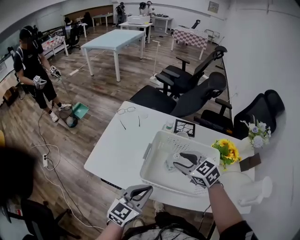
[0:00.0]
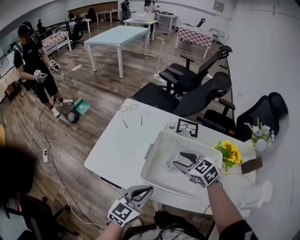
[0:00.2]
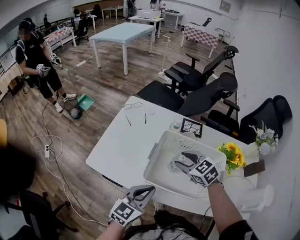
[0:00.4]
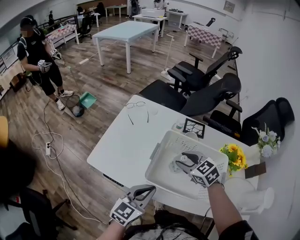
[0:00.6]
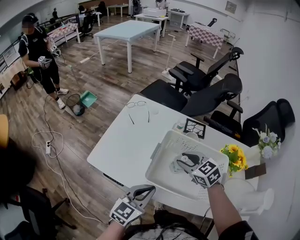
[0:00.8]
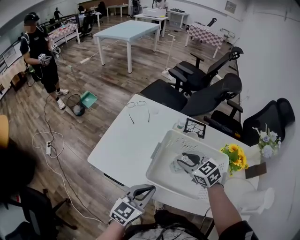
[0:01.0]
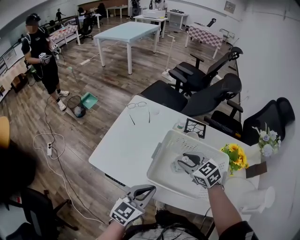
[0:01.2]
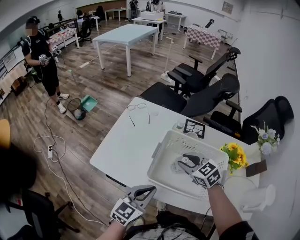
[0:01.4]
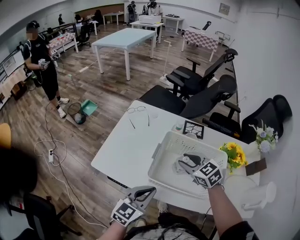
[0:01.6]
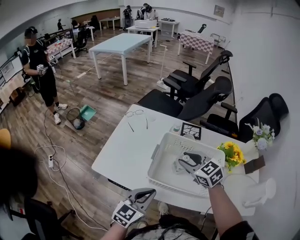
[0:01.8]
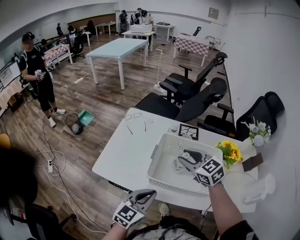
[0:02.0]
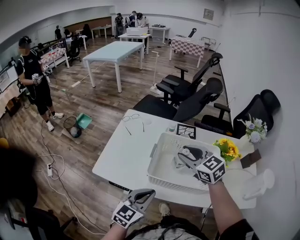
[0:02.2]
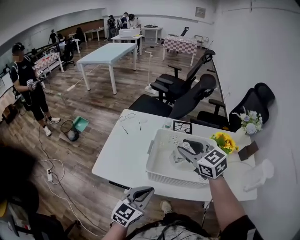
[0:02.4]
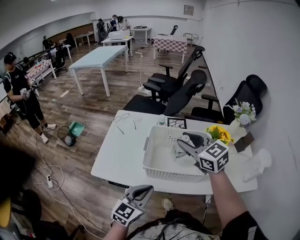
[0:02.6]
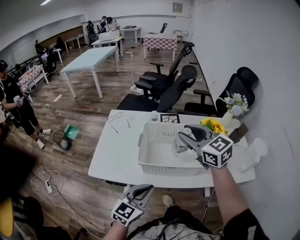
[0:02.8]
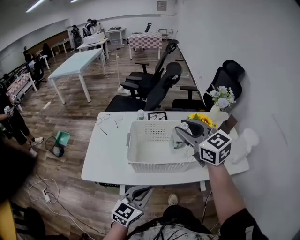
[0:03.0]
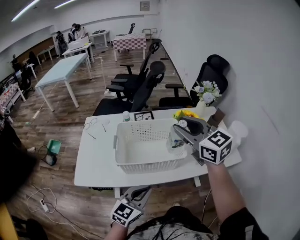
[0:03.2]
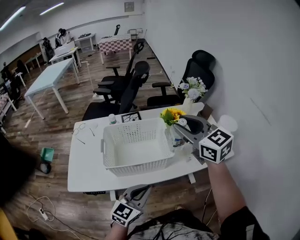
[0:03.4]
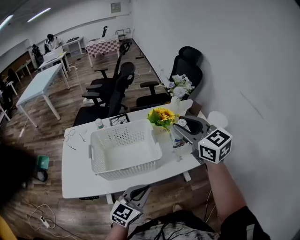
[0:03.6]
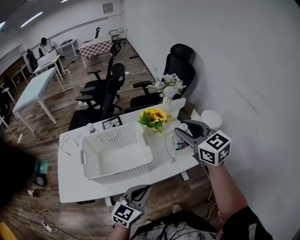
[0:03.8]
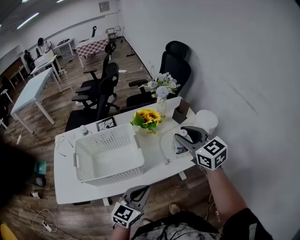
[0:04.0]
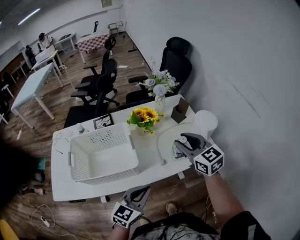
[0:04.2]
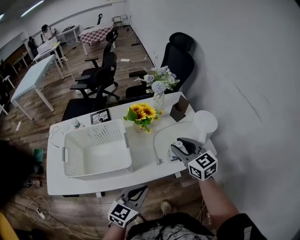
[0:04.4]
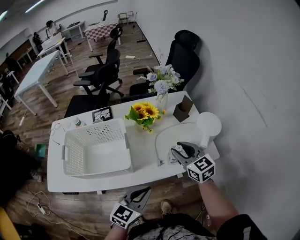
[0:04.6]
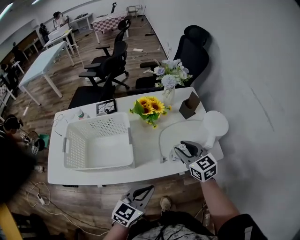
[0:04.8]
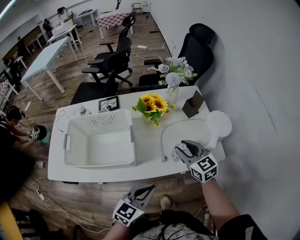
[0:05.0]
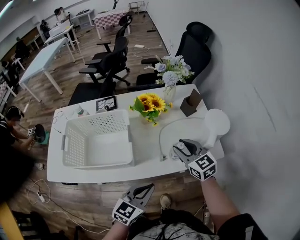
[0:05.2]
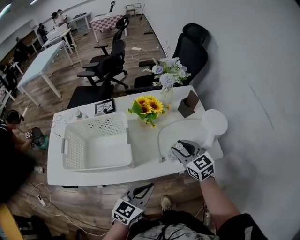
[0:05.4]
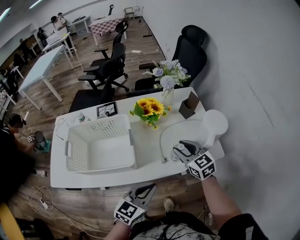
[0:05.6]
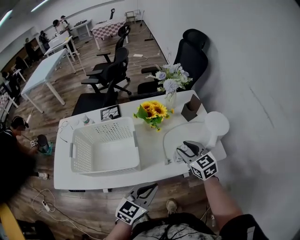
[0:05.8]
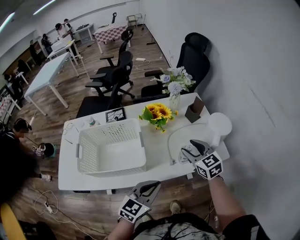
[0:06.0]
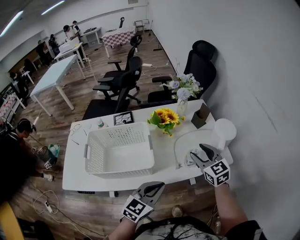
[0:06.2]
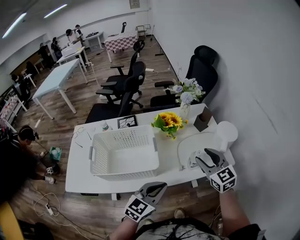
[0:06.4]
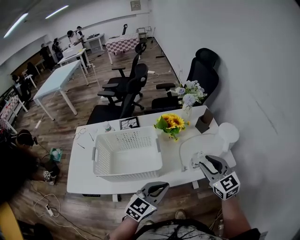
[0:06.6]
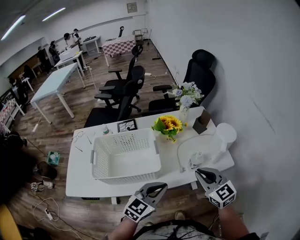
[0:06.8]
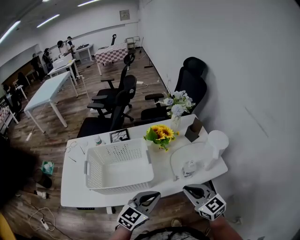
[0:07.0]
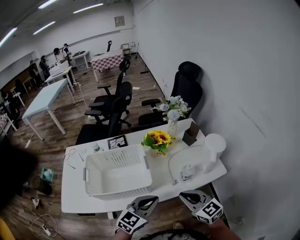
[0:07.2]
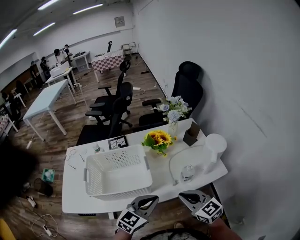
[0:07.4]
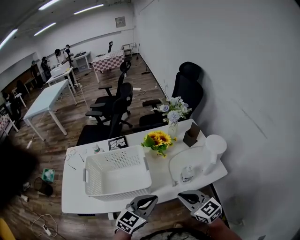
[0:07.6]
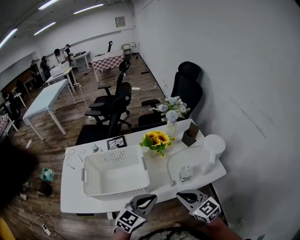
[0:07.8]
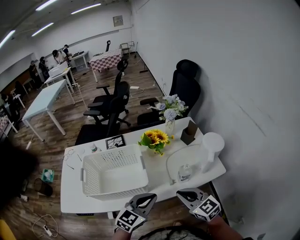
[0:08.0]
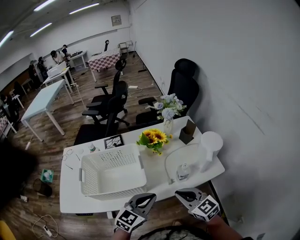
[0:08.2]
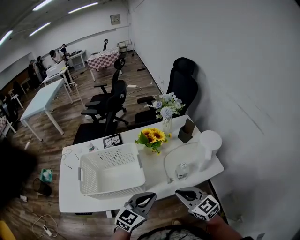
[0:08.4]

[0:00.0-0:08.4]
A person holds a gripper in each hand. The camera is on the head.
0:00.0 to 0:01.4: There are only small adjustments of the grippers.
0:01.4 to 0:02.8: The right gripper moves upward, approximately 20 cm, and rotates about 30 degrees. The left gripper heads backward, covering approximately 10 cm.
0:02.8 to 0:04.2: The grippers both shift to the right by about 30 cm. The left gripper swivels approximately 20 degrees. Meanwhile the right gripper swivels about 30 degrees.
0:04.2 to 0:05.6: The left gripper shifts by about 5 cm; the right gripper shifts some 10 cm downward.
0:05.6 to 0:07.0: The left gripper moves to the left and upward, some 10 cm; the right gripper goes some 15 cm backward, and closes.
0:07.0 to 0:08.4: The grippers move only a little.

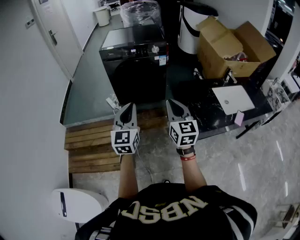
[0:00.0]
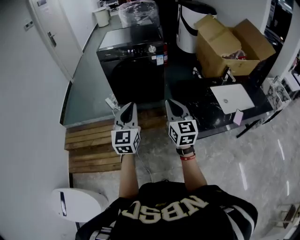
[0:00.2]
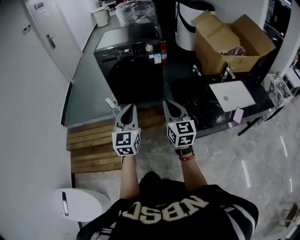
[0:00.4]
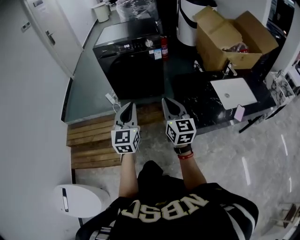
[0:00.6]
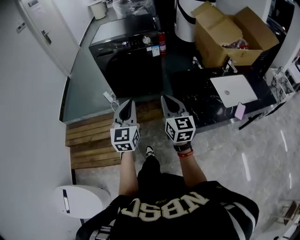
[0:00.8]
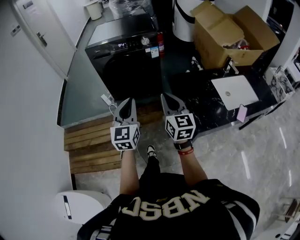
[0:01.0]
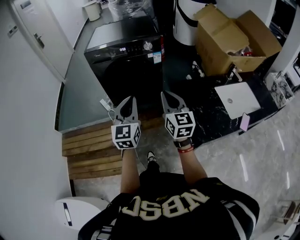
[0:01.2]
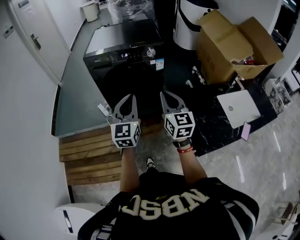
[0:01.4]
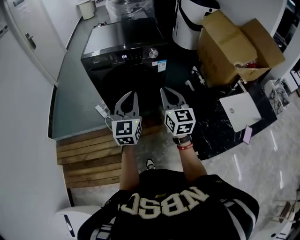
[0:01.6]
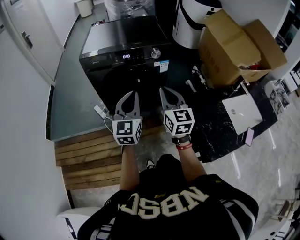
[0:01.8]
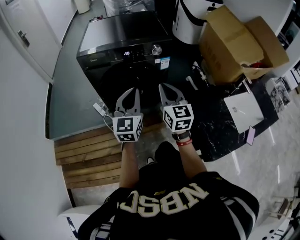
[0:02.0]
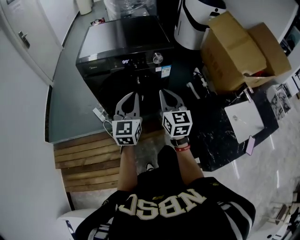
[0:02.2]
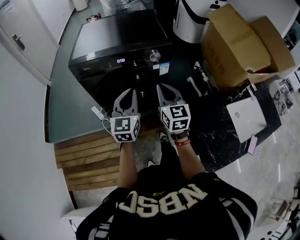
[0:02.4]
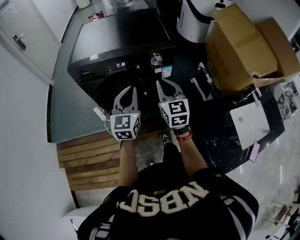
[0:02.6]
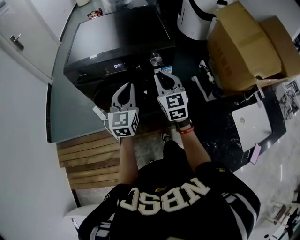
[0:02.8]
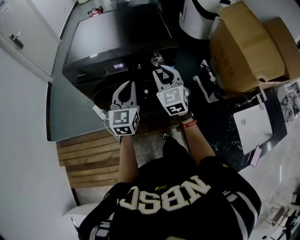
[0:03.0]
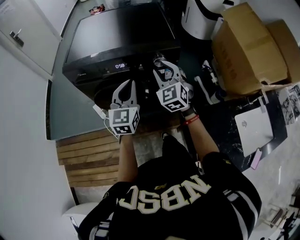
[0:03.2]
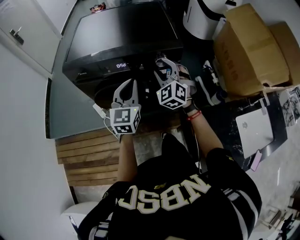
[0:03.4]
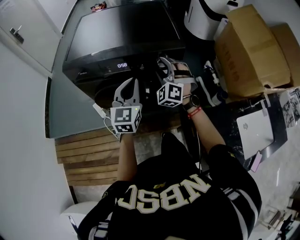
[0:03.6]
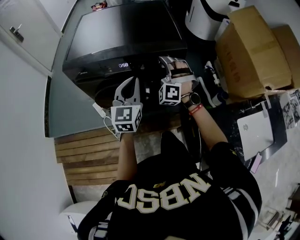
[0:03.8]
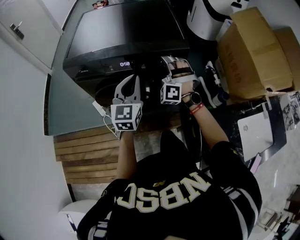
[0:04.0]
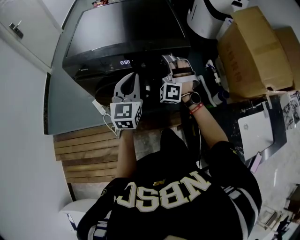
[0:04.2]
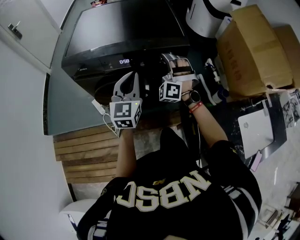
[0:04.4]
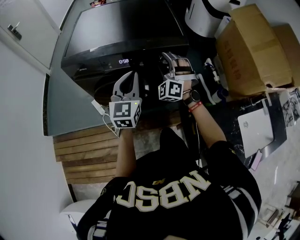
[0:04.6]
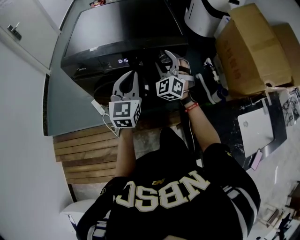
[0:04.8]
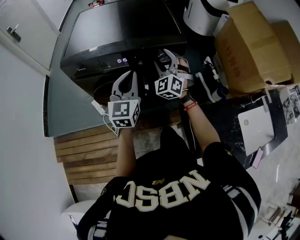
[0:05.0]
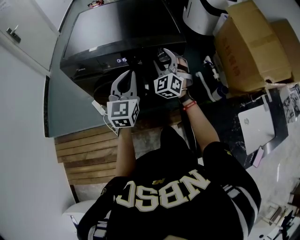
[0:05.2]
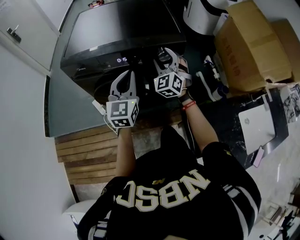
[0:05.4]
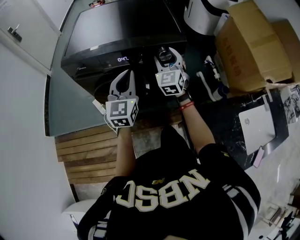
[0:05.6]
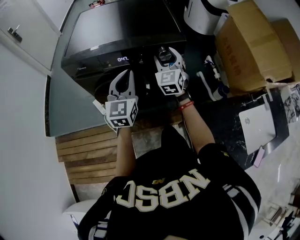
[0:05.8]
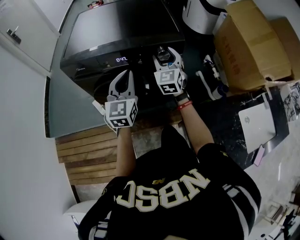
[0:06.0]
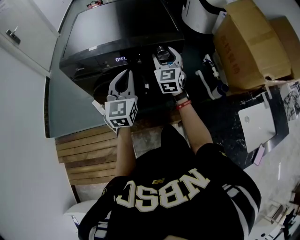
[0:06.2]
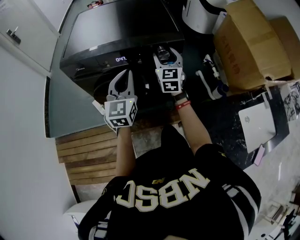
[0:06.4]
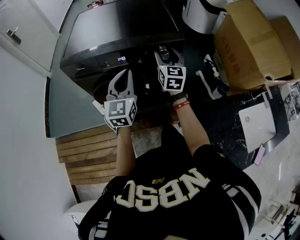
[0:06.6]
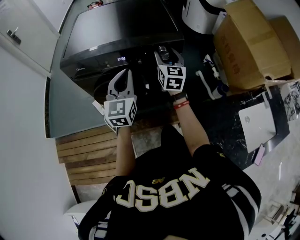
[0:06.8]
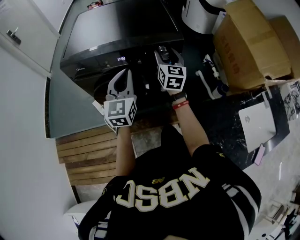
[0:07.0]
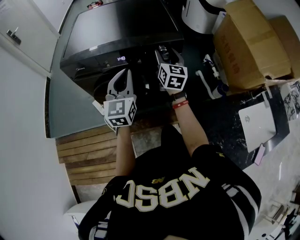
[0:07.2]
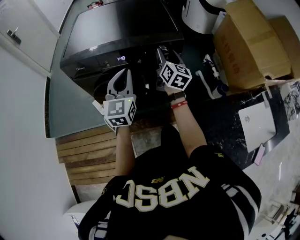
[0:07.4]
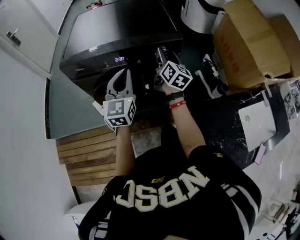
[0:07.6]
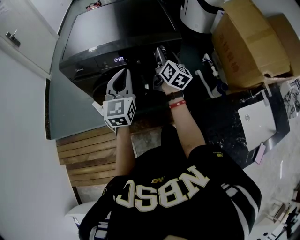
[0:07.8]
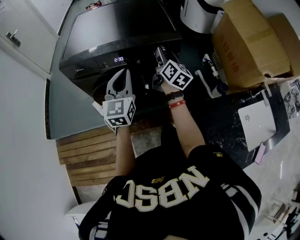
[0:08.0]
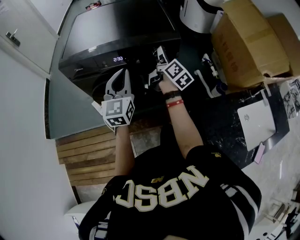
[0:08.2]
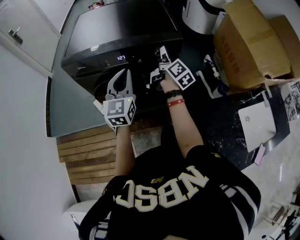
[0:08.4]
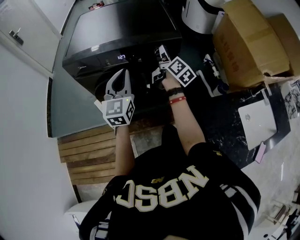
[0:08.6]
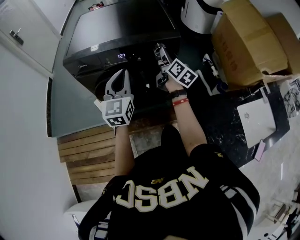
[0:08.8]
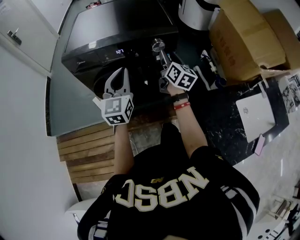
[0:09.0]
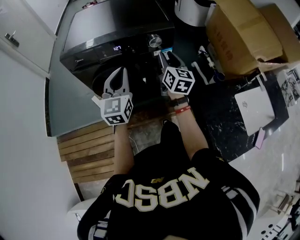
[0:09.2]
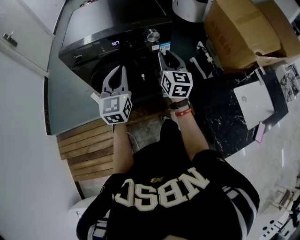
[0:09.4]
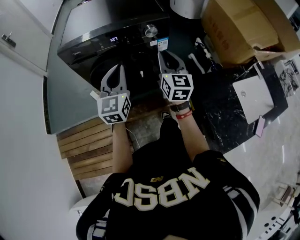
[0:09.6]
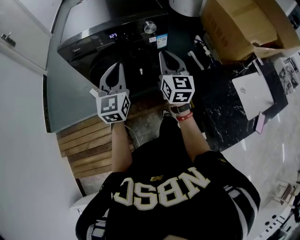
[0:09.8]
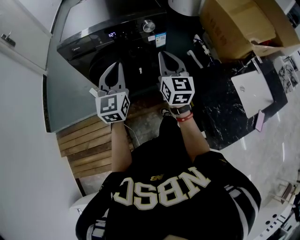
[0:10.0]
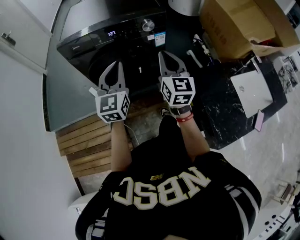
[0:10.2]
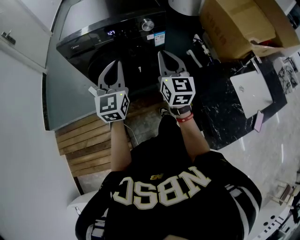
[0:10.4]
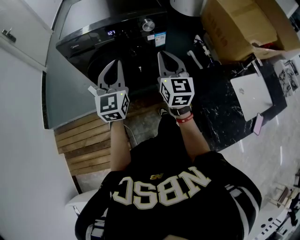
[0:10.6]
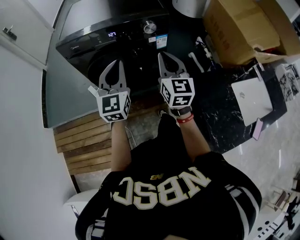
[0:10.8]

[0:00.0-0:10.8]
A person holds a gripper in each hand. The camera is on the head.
0:00.0 to 0:01.6: The grippers both shift forward by some 30 cm.
0:01.6 to 0:03.0: The two grippers go approximately 25 cm forward. The right gripper turns by some 30 degrees.
0:03.0 to 0:04.6: The right gripper moves forward and downward, about 10 cm, rotates around the line of its fingers by some 50 degrees, counterclockwise from behind, and opens.
0:04.6 to 0:06.2: The right gripper rolls clockwise, seen from behind, by about 60 degrees.
0:06.2 to 0:07.8: The right gripper rotates around the line of its fingers by some 50 degrees, clockwise from behind.
0:07.8 to 0:09.2: The right gripper moves backward, some 10 cm, while the left gripper shifts some 5 cm backward.
0:09.2 to 0:10.8: The right gripper goes some 10 cm backward, and closes; the left gripper travels backward by some 5 cm.

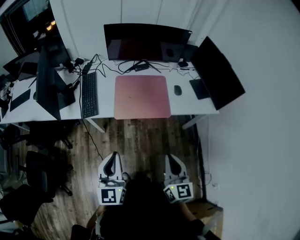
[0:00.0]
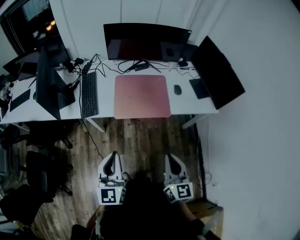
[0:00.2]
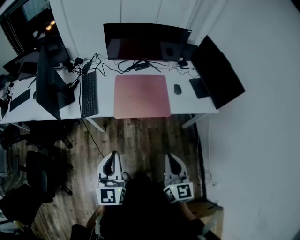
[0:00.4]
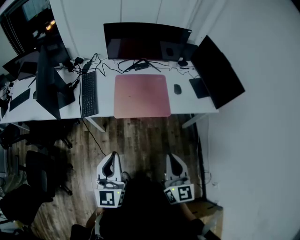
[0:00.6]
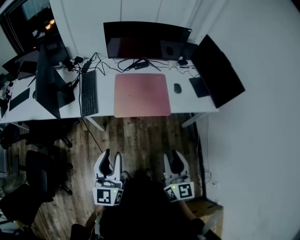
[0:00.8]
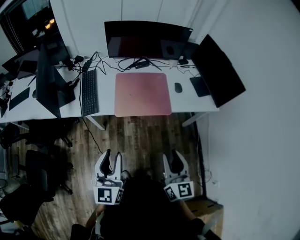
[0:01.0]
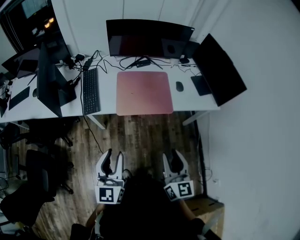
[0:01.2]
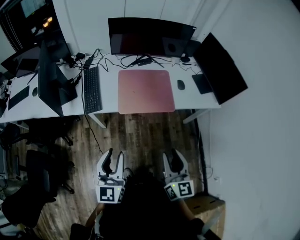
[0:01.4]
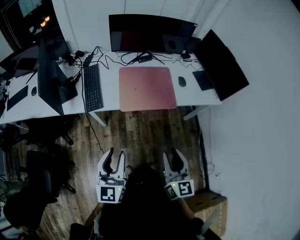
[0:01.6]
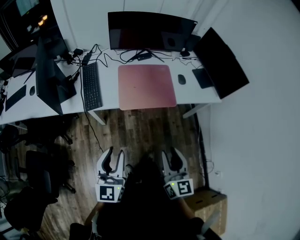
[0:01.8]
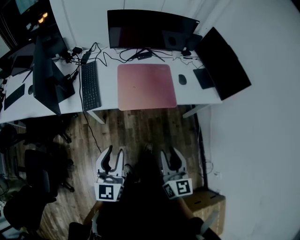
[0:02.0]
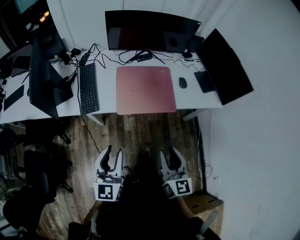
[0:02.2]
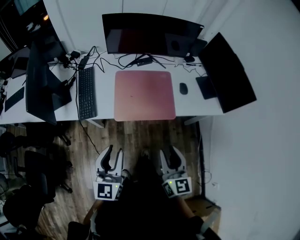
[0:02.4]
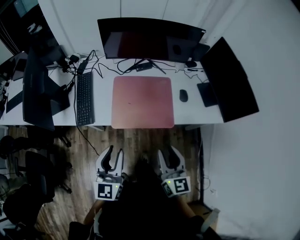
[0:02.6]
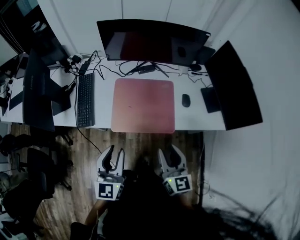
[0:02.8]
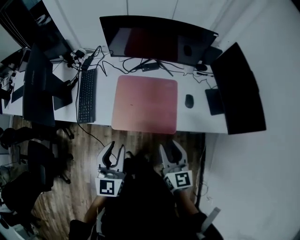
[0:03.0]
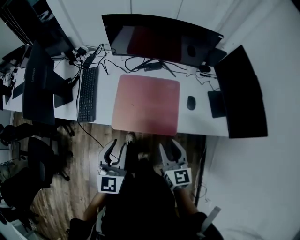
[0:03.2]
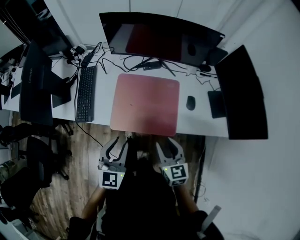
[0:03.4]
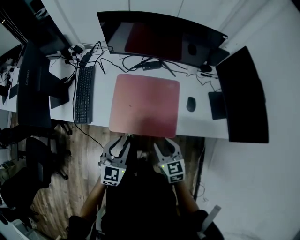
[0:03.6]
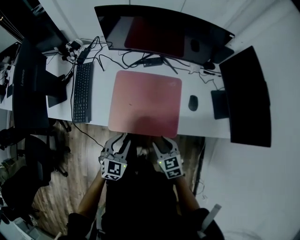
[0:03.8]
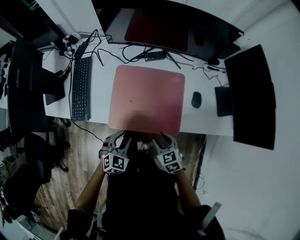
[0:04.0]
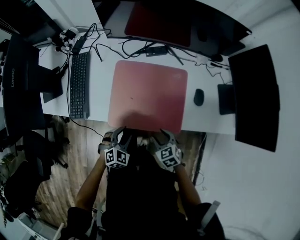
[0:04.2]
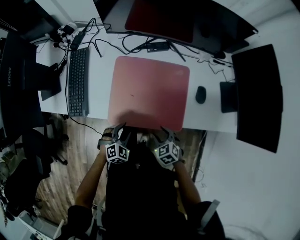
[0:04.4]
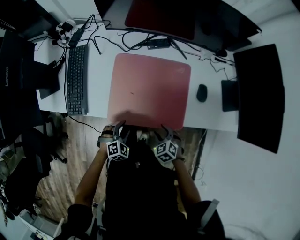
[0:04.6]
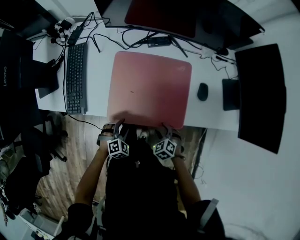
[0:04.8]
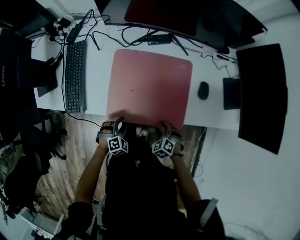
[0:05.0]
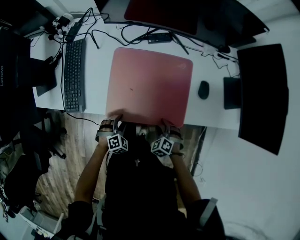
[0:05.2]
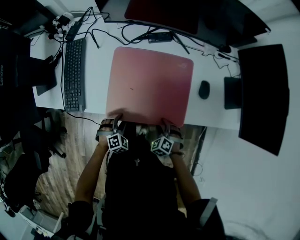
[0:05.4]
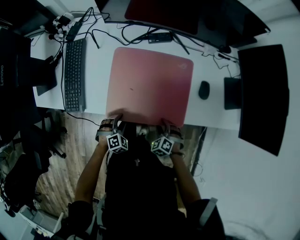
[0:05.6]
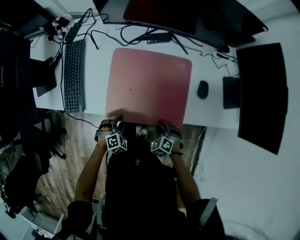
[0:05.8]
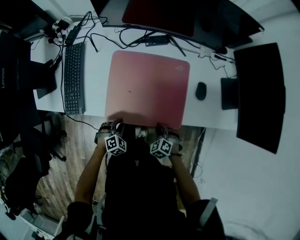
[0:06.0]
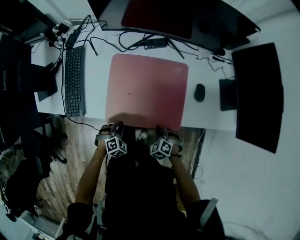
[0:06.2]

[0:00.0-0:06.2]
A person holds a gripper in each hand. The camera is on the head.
0:00.0 to 0:01.6: Both grippers travel together to the left, about 5 cm. The left gripper opens its fingers. Meanwhile the right gripper opens.
0:01.6 to 0:03.2: The left gripper moves forward and to the right, roughly 25 cm. The right gripper shifts about 30 cm forward, and changes its angle by some 20 degrees.
0:03.2 to 0:04.6: Both grippers travel together downward, some 30 cm. The right gripper tips its fingers downward by some 50 degrees; the left gripper tilts its fingers some 40 degrees downward.
0:04.6 to 0:06.2: The right gripper closes its fingers. The left gripper closes up.
